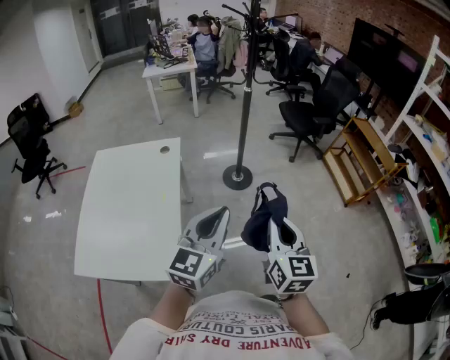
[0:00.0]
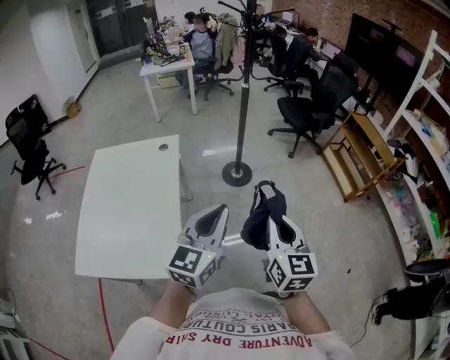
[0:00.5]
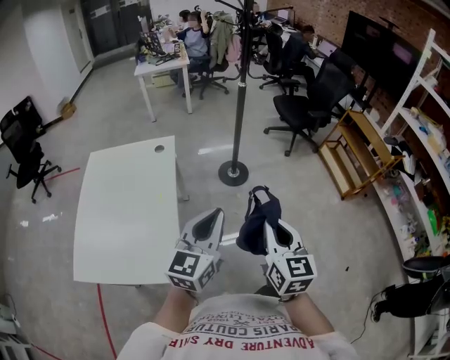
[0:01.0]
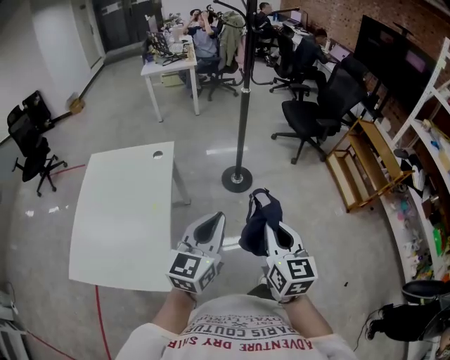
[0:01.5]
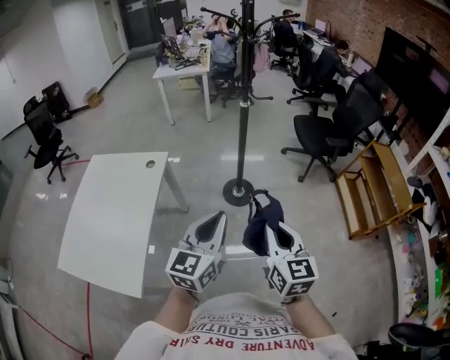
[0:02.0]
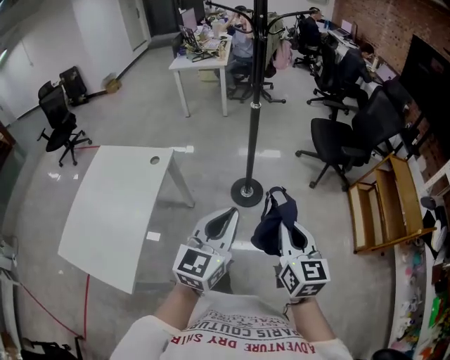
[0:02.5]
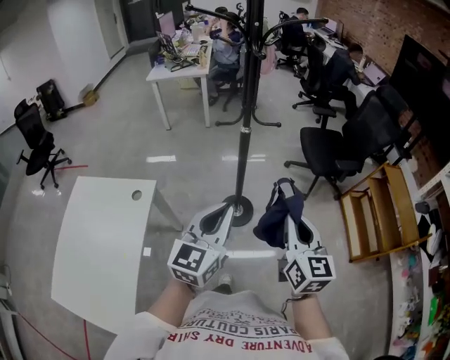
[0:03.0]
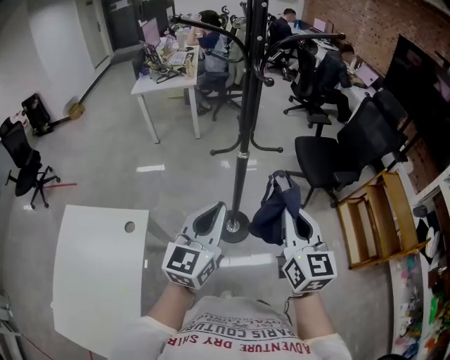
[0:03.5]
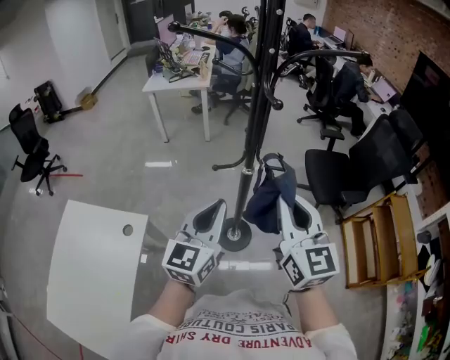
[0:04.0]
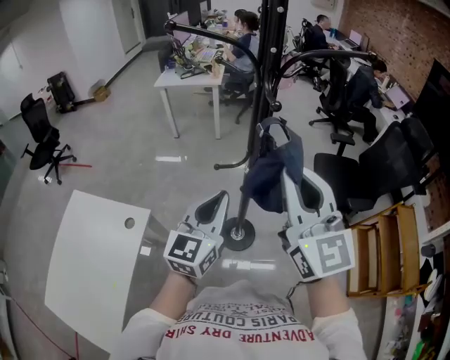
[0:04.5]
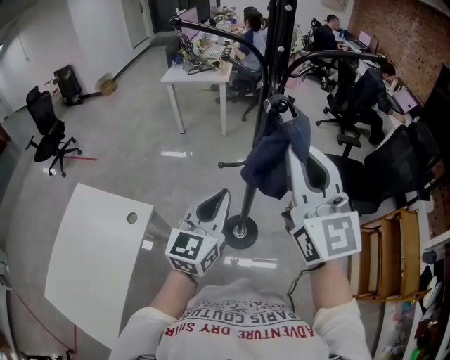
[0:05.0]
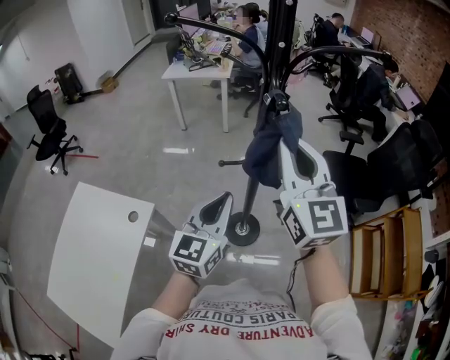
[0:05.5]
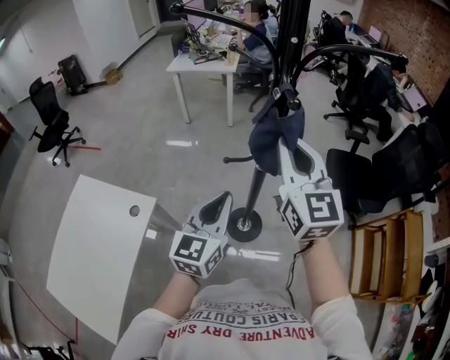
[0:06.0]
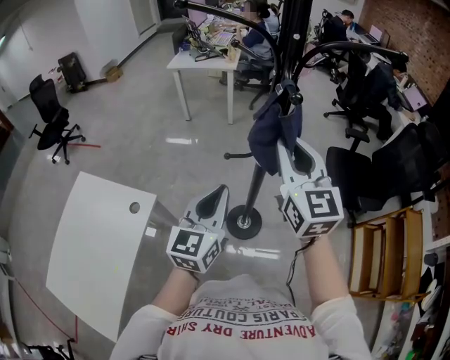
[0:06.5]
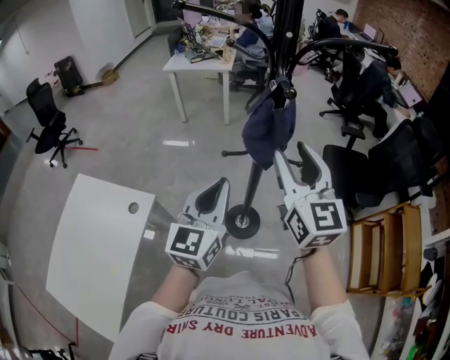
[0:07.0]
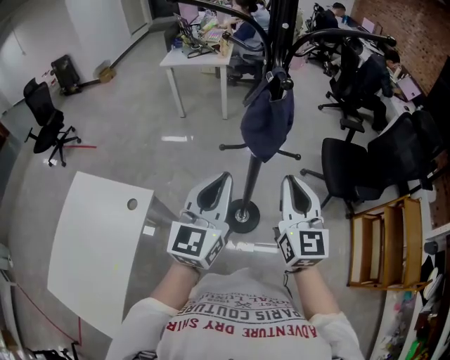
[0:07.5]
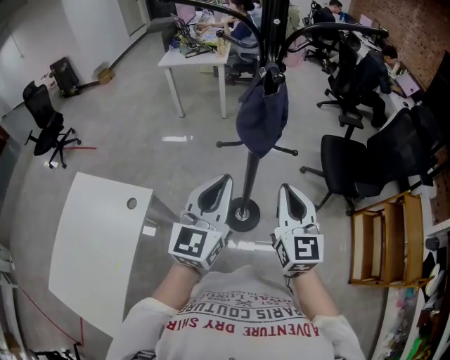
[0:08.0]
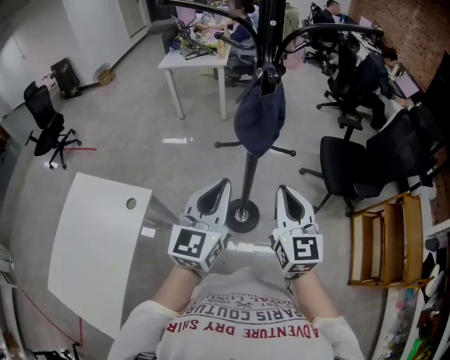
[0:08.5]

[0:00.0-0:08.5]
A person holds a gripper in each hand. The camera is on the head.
0:00.0 to 0:02.0: Both grippers move forward and to the right, approximately 25 cm.
0:02.0 to 0:04.0: Both grippers are carried forward, about 50 cm.
0:04.0 to 0:06.5: The right gripper shifts approximately 10 cm forward.
0:06.5 to 0:08.5: The left gripper ends up some 5 cm from where it was, while the right gripper goes roughly 15 cm downward and backward, and opens and closes again.

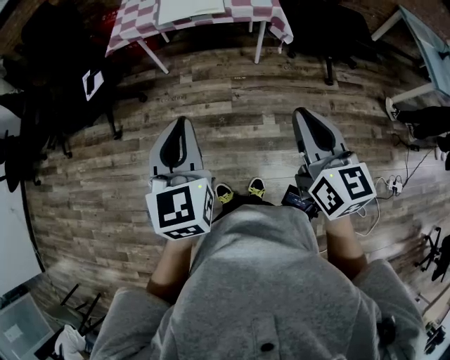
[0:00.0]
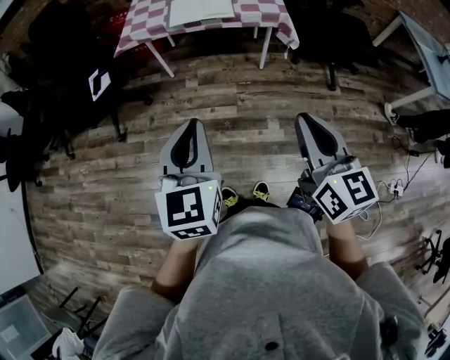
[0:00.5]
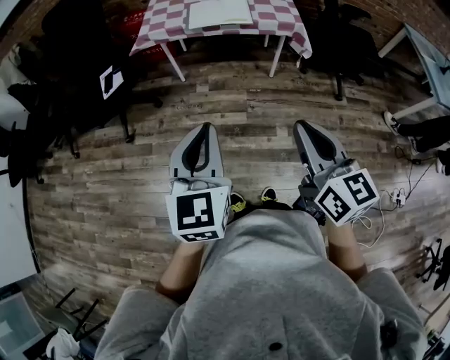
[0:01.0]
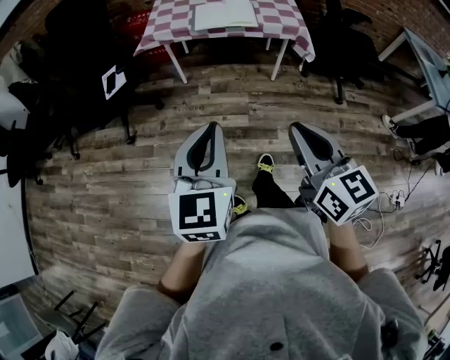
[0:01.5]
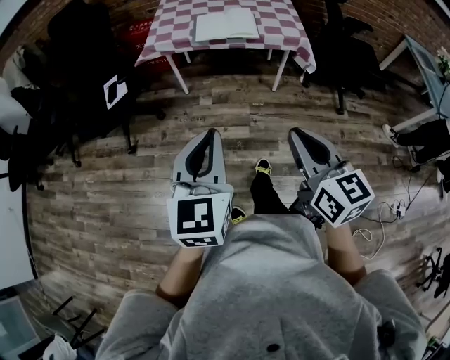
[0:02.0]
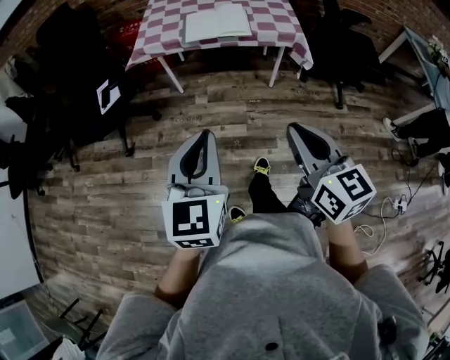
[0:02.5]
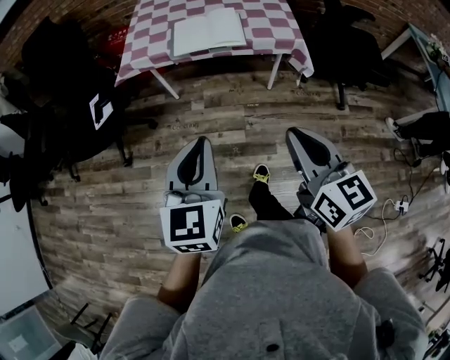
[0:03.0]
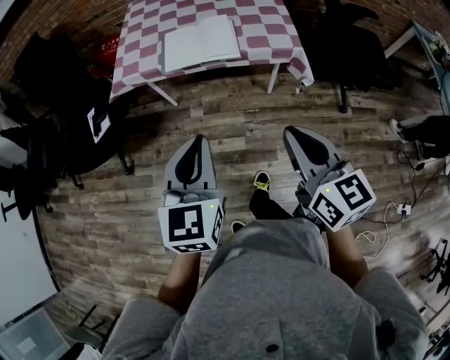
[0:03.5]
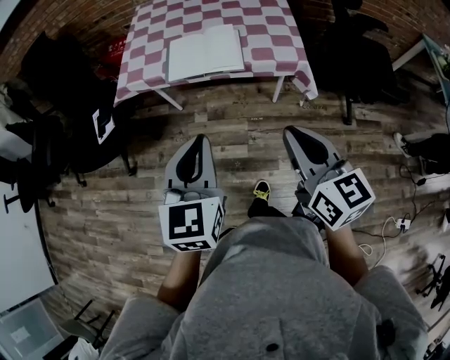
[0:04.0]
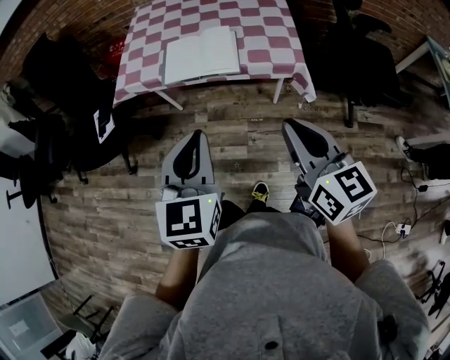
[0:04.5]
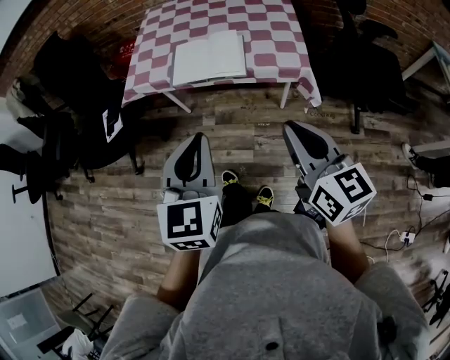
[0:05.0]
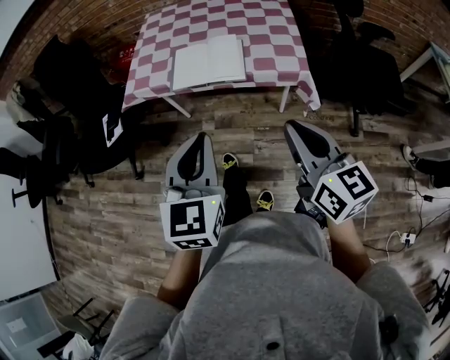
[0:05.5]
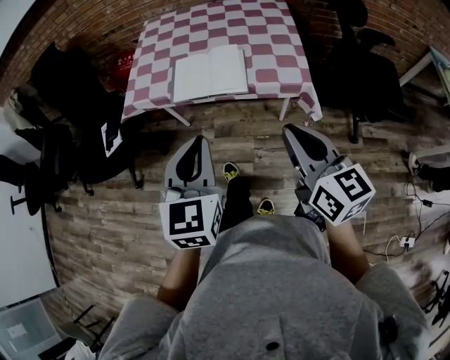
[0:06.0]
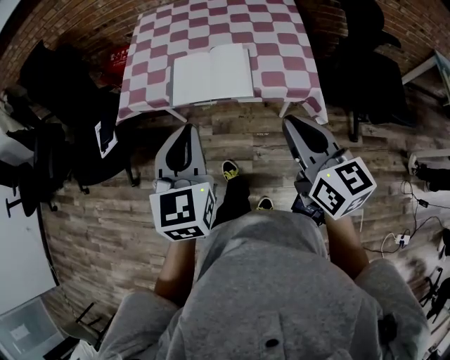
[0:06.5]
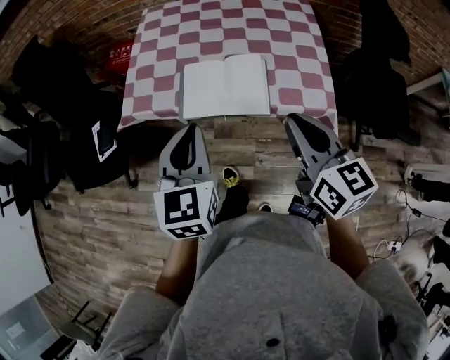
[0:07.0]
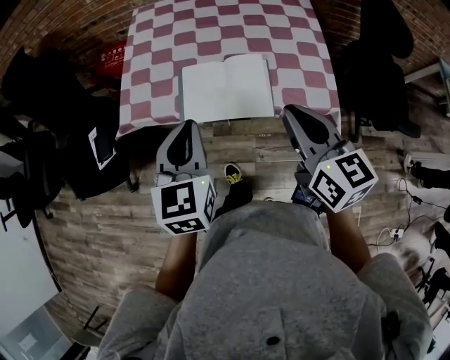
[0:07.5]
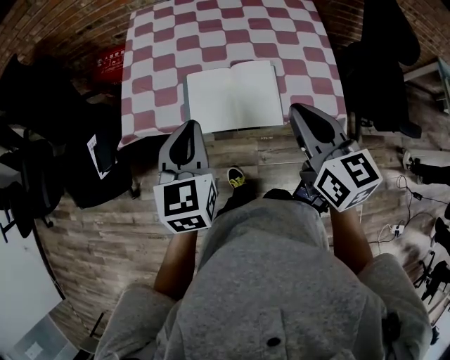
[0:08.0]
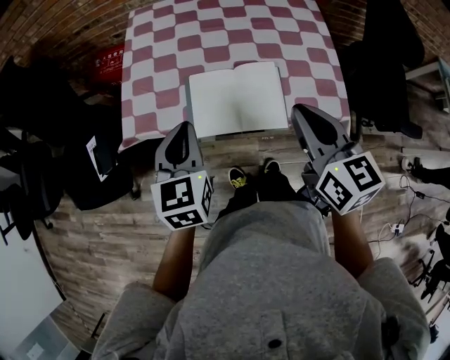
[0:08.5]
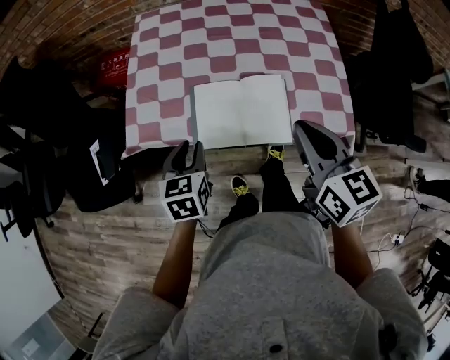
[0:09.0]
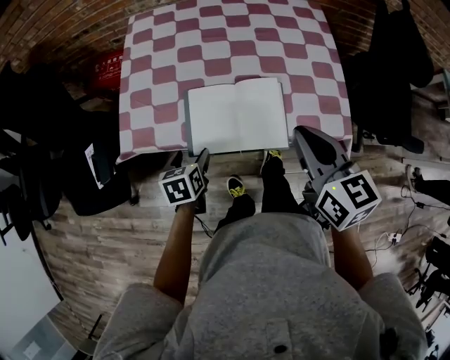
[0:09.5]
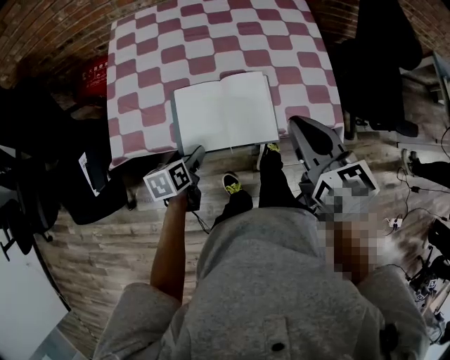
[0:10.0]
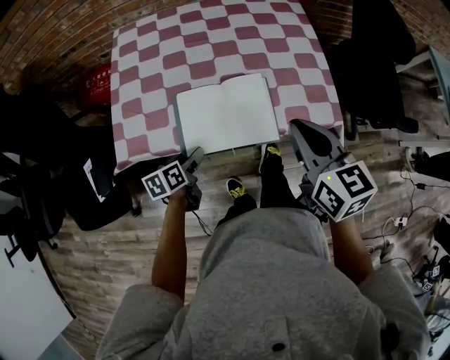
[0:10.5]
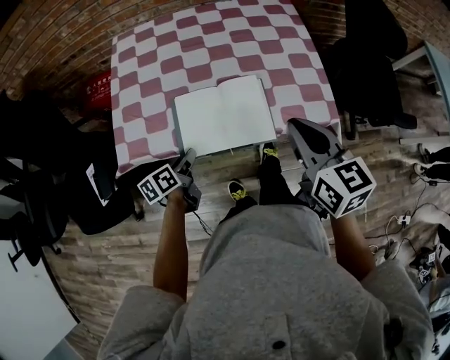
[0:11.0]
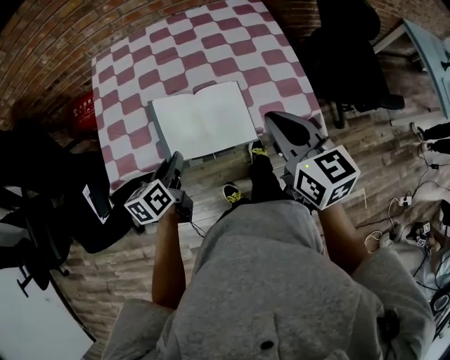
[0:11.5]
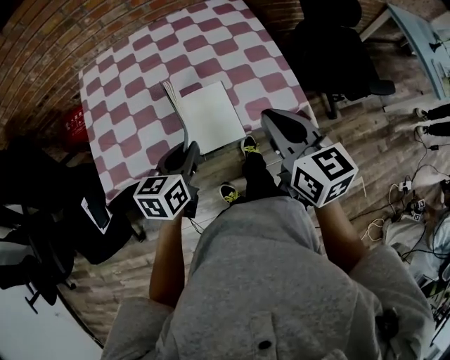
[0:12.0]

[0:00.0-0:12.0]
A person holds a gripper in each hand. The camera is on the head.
0:00.0 to 0:02.0: The right gripper heads to the left, covering some 15 cm. The left gripper travels to the left by approximately 5 cm.
0:02.0 to 0:04.0: The two grippers go roughly 30 cm forward and to the right.
0:04.0 to 0:06.0: Both grippers move forward, some 5 cm.
0:06.0 to 0:08.0: Both grippers travel together forward, about 25 cm.
0:08.0 to 0:10.0: The left gripper travels downward by about 25 cm, turns by approximately 40 degrees, and opens its fingers. The right gripper moves roughly 5 cm.
0:10.0 to 0:12.0: The right gripper moves to the right, about 5 cm, while the left gripper goes some 20 cm upward and to the right, changes its angle by approximately 30 degrees, and closes.

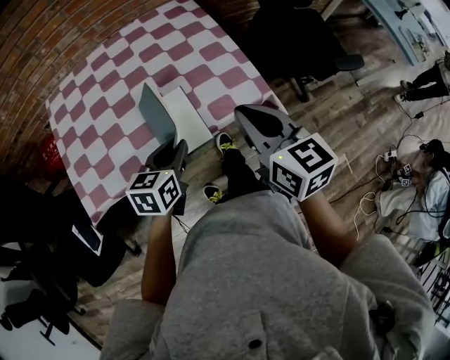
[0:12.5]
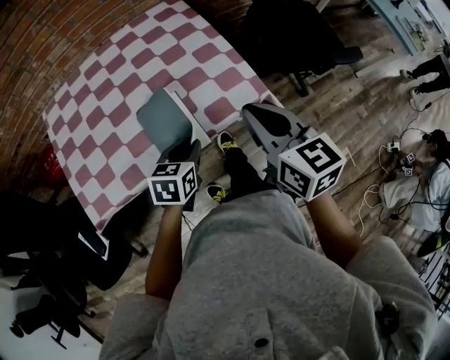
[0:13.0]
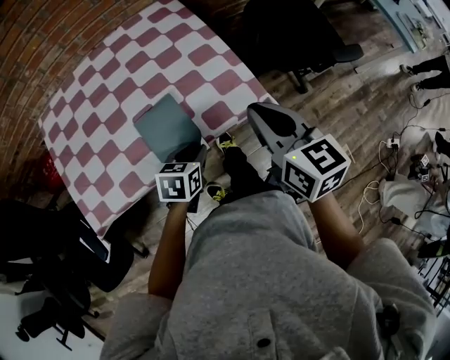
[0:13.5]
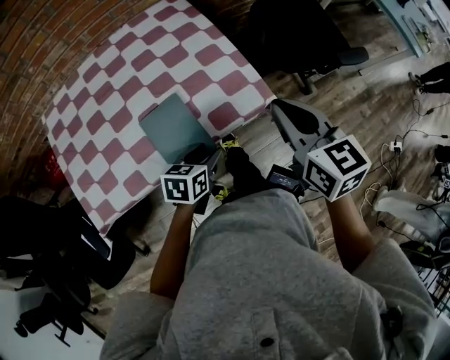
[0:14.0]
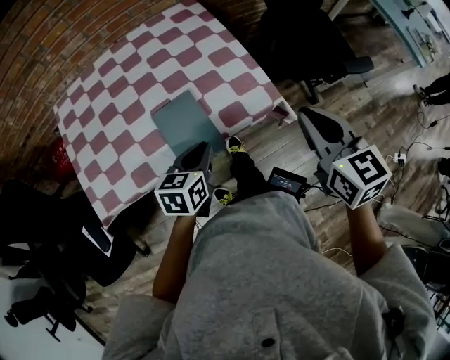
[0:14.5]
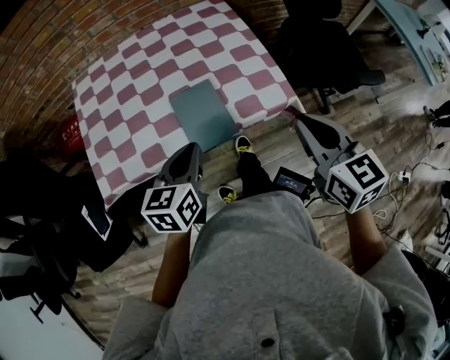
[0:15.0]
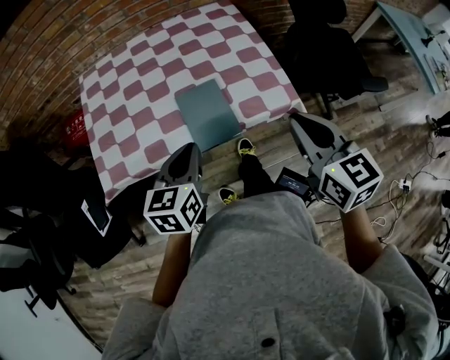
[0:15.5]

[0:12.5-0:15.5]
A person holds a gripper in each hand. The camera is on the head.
0:12.5 to 0:14.0: The left gripper heads to the right and downward, covering approximately 10 cm, and opens up, while the right gripper goes about 10 cm to the right and forward.
0:14.0 to 0:15.5: The left gripper travels upward, to the left and backward by some 20 cm, rotates some 30 degrees, and closes; the right gripper heads backward, covering about 10 cm.

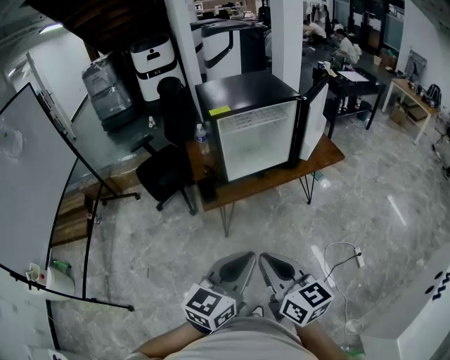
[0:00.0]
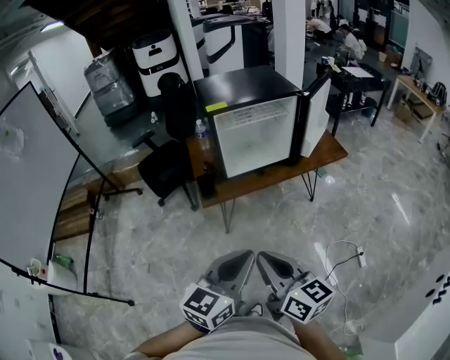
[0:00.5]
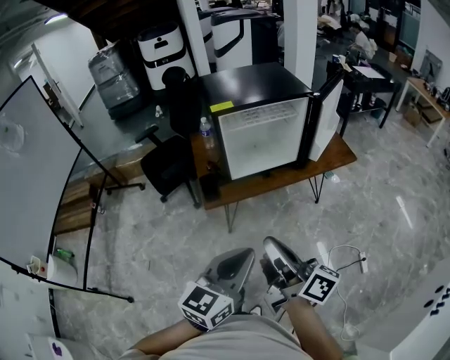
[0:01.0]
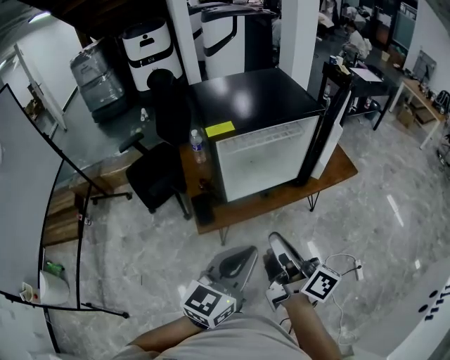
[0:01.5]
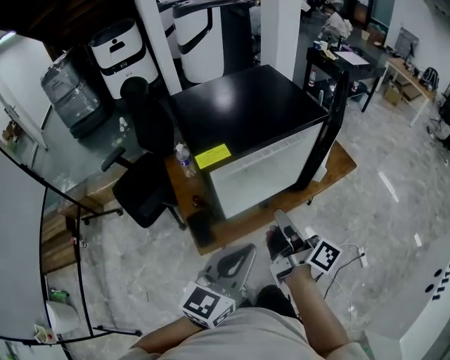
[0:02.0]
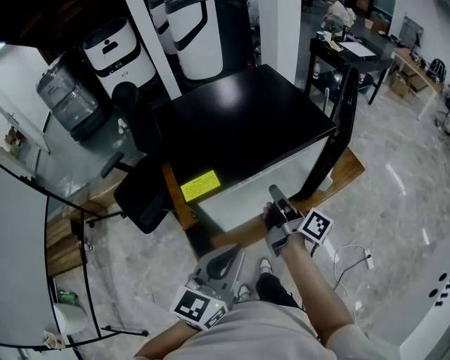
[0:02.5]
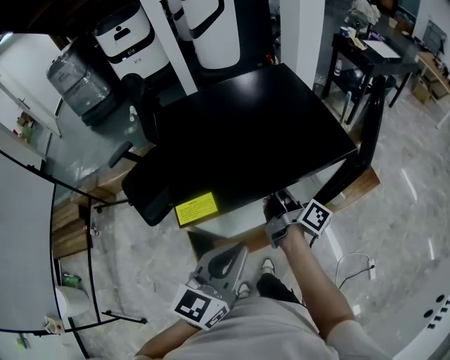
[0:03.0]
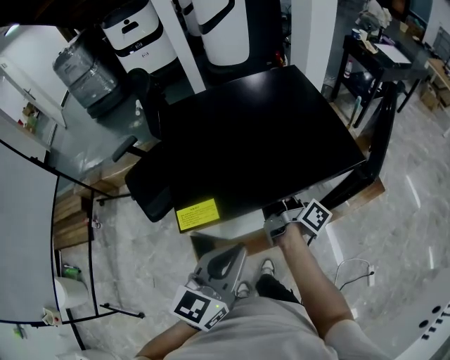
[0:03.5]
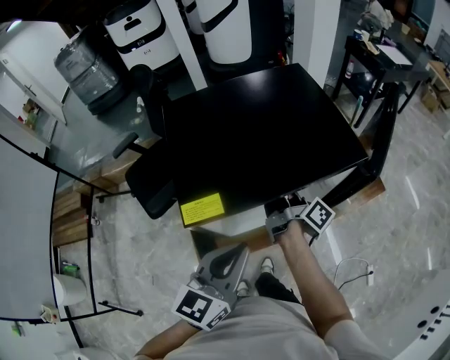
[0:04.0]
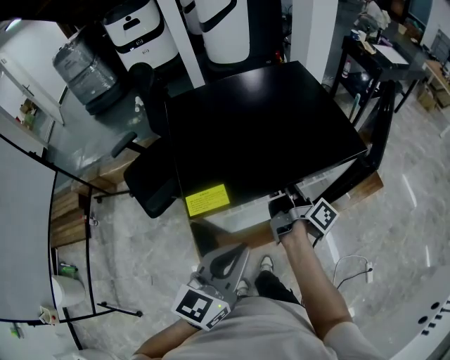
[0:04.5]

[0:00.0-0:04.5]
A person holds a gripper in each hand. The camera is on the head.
0:00.0 to 0:02.0: The left gripper moves about 30 cm.
0:02.0 to 0:04.5: The left gripper shifts by roughly 15 cm.
